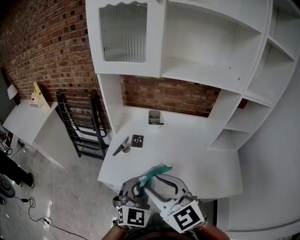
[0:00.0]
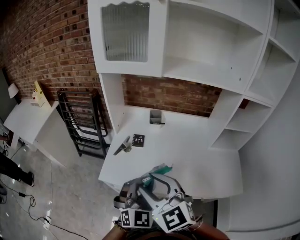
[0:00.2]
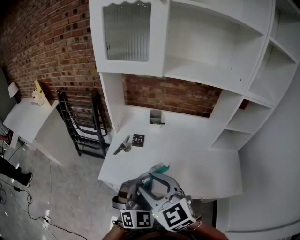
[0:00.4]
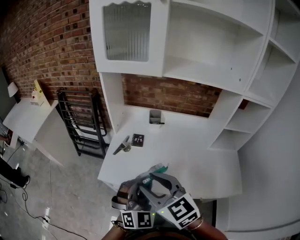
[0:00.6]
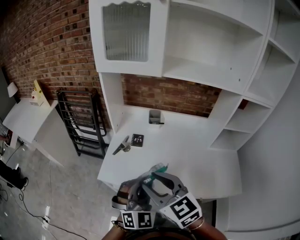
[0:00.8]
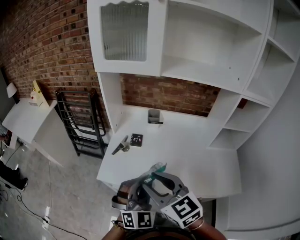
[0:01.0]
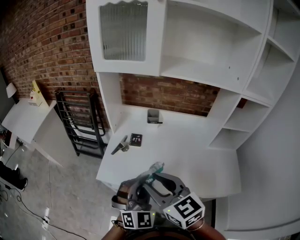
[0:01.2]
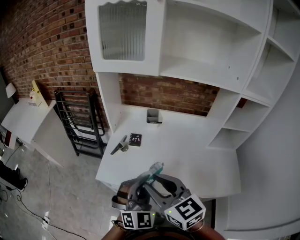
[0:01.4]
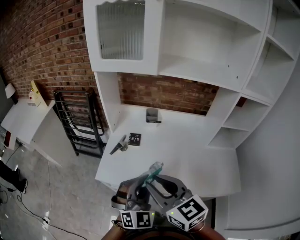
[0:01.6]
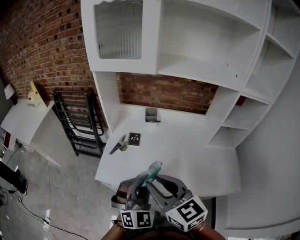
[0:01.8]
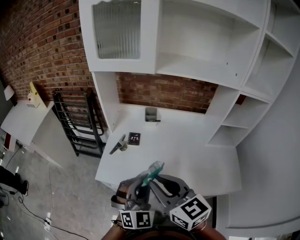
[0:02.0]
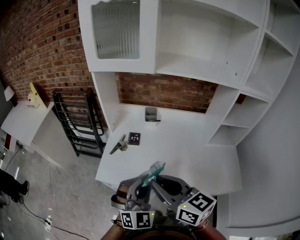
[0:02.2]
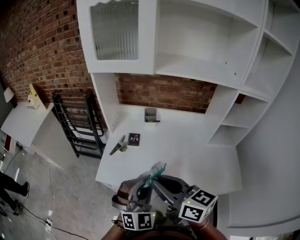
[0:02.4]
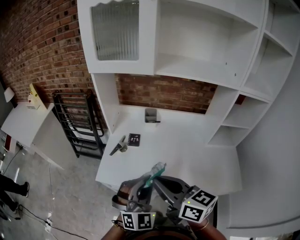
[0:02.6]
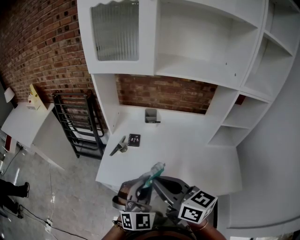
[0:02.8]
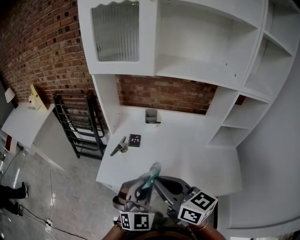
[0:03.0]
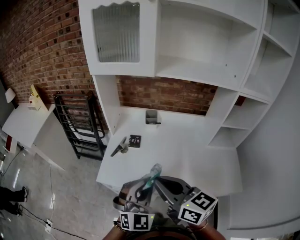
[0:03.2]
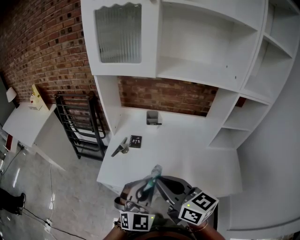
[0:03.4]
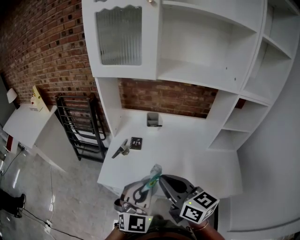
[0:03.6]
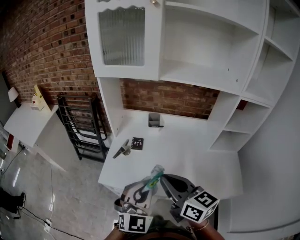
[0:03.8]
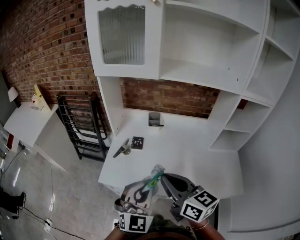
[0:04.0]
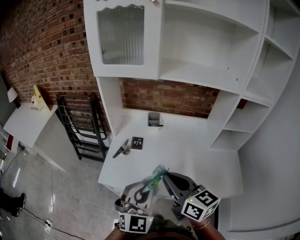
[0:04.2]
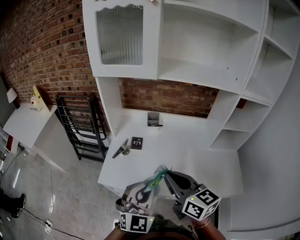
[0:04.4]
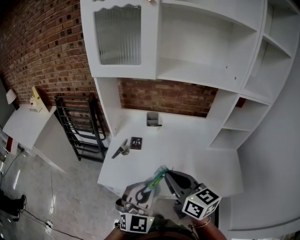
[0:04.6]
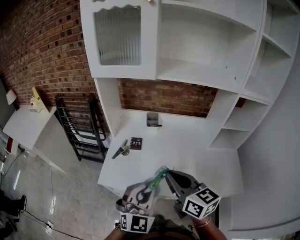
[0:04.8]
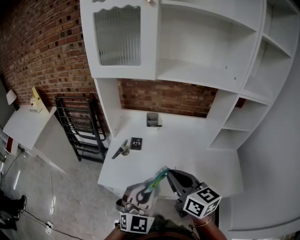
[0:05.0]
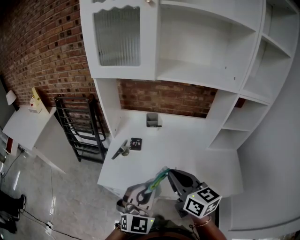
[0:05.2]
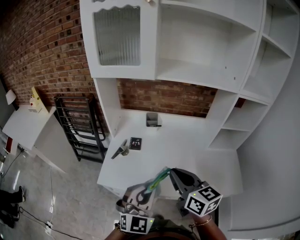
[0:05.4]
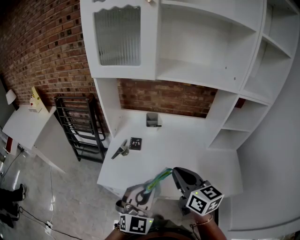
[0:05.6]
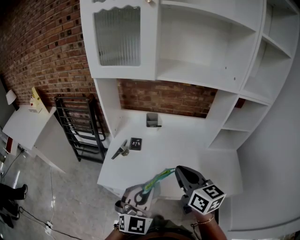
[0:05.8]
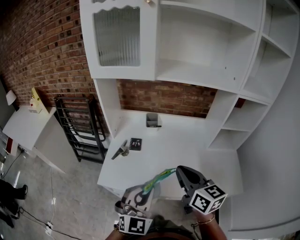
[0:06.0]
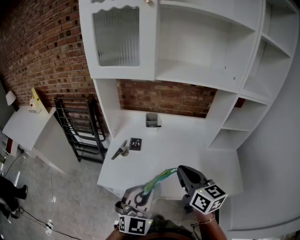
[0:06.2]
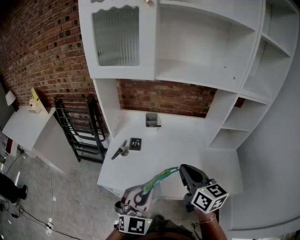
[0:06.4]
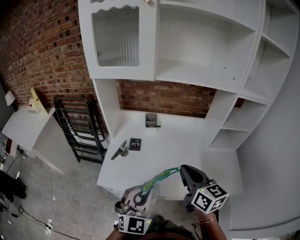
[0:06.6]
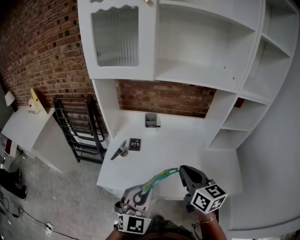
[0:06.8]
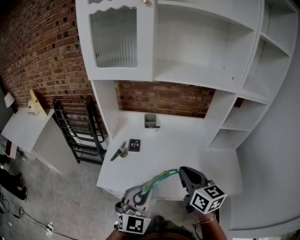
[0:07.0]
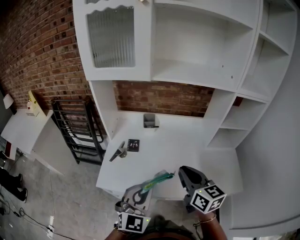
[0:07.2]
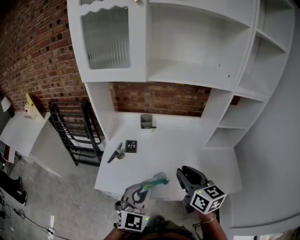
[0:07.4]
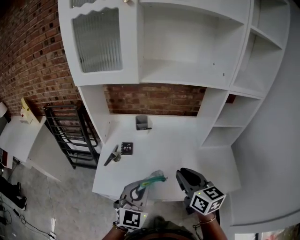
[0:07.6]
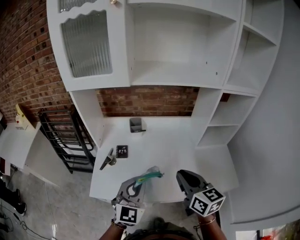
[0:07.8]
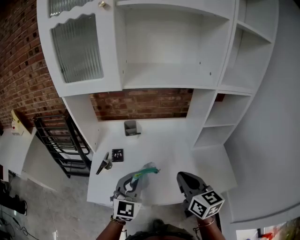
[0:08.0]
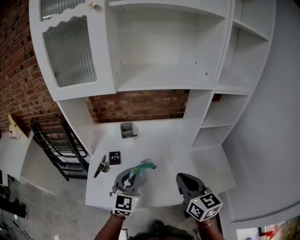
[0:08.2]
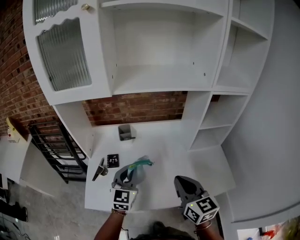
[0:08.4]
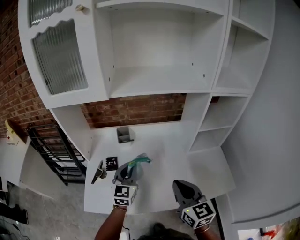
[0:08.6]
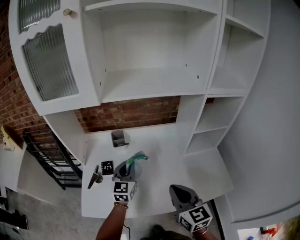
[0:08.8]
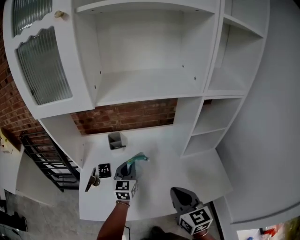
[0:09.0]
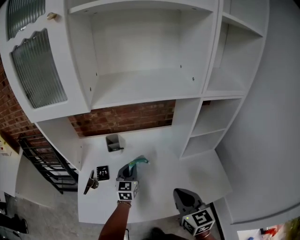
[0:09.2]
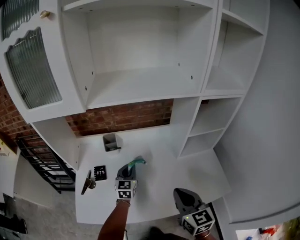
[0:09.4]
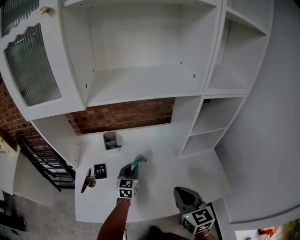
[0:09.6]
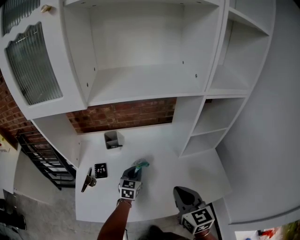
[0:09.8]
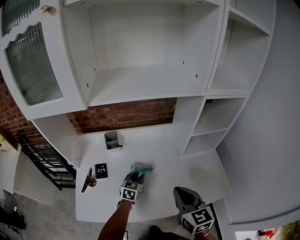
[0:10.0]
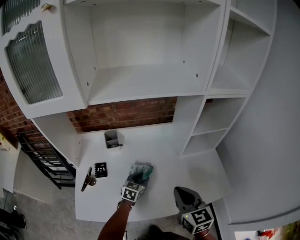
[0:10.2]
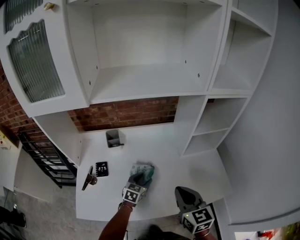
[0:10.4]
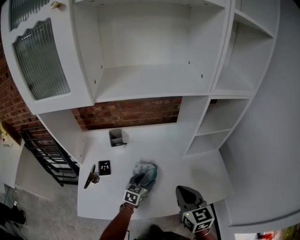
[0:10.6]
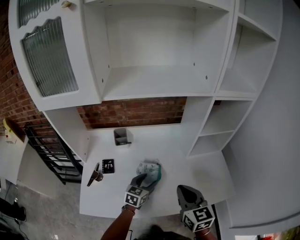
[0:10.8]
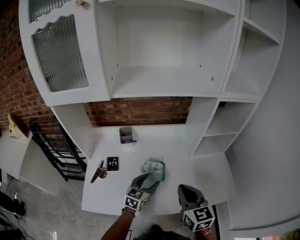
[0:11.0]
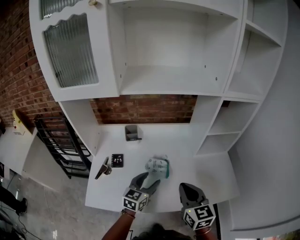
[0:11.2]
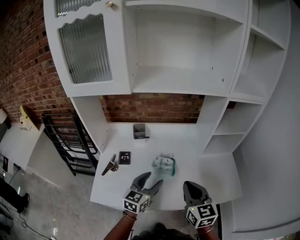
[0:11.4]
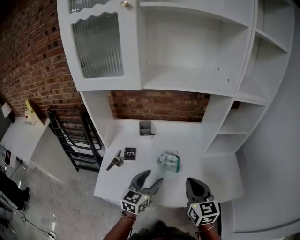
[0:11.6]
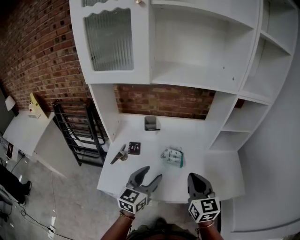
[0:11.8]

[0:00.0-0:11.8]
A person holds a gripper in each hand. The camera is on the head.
0:00.0 to 0:01.4: The right gripper rotates approximately 20 degrees.
0:01.4 to 0:03.0: The right gripper turns by some 20 degrees.
0:03.0 to 0:04.4: The grippers make only small movements.
0:04.4 to 0:06.0: The right gripper is displaced to the right by some 5 cm.
0:06.0 to 0:07.4: The grippers make only small movements.
0:07.4 to 0:08.8: The left gripper goes approximately 25 cm forward. Meanwhile the right gripper travels to the right by some 5 cm.
0:08.8 to 0:10.4: The left gripper shifts about 20 cm downward and to the right, and rotates roughly 30 degrees. Meanwhile the right gripper is displaced to the right by about 5 cm.
0:10.4 to 0:11.8: The right gripper is displaced to the left and backward by approximately 10 cm. The left gripper moves upward, backward and to the left, roughly 30 cm, and rotates approximately 30 degrees.

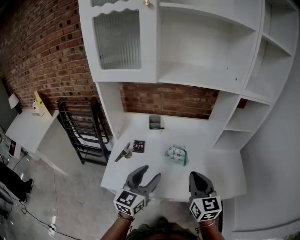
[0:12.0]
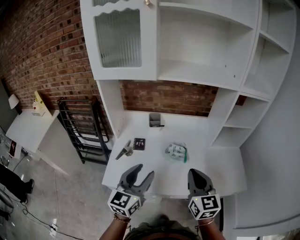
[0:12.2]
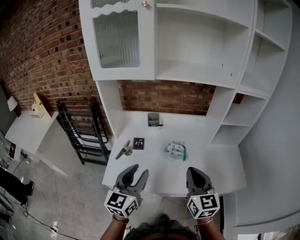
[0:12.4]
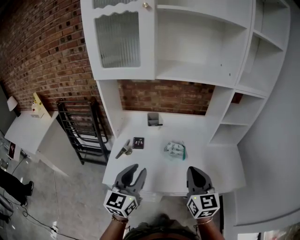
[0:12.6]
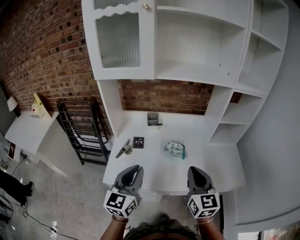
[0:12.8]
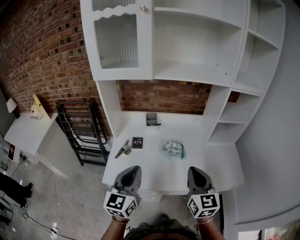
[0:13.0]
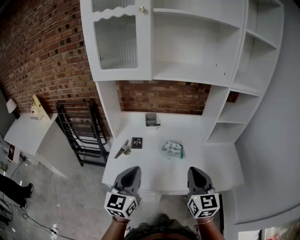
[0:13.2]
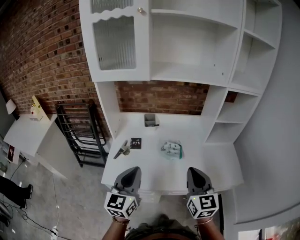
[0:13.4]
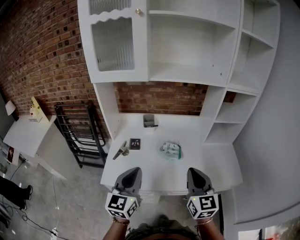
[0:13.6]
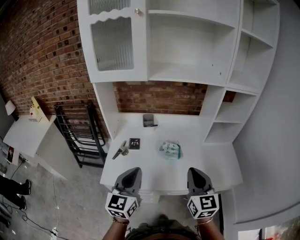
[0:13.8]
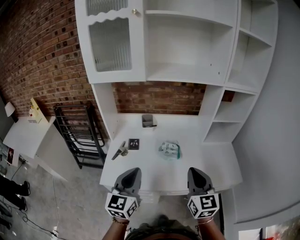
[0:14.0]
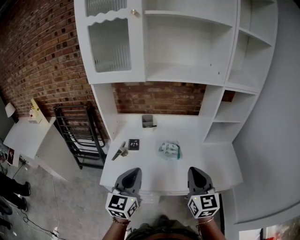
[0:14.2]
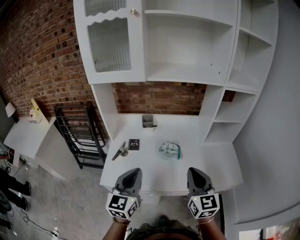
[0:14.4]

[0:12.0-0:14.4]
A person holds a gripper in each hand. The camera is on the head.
0:12.0 to 0:13.2: The left gripper moves backward and to the left, about 10 cm, and closes up. Meanwhile the right gripper changes place by approximately 5 cm.
0:13.2 to 0:14.4: The grippers move only a little.

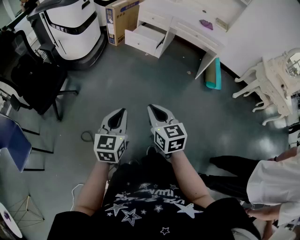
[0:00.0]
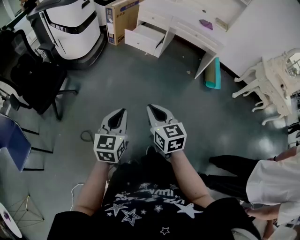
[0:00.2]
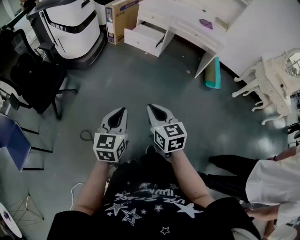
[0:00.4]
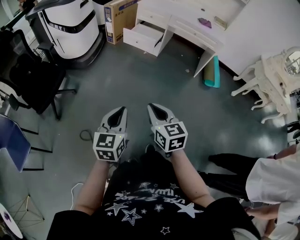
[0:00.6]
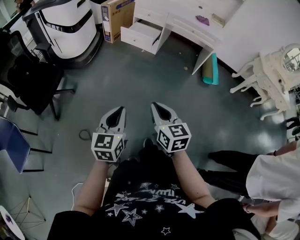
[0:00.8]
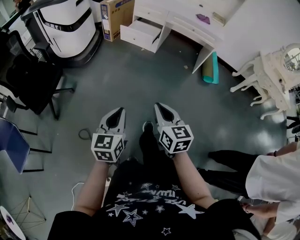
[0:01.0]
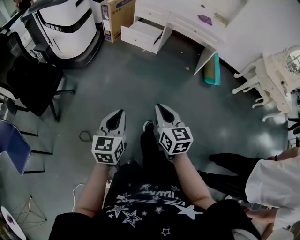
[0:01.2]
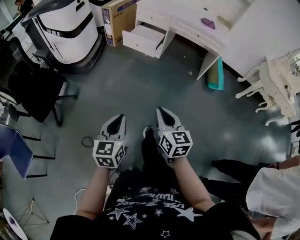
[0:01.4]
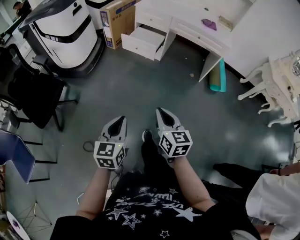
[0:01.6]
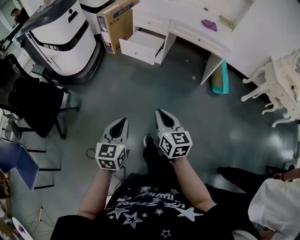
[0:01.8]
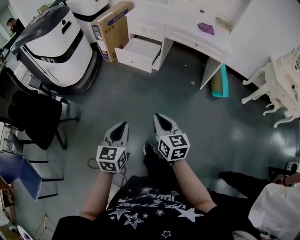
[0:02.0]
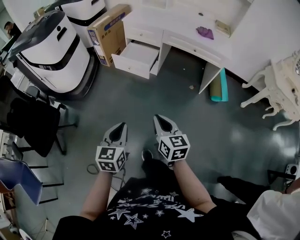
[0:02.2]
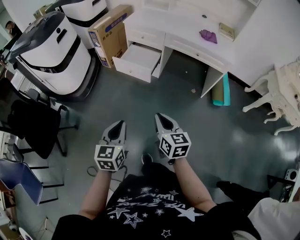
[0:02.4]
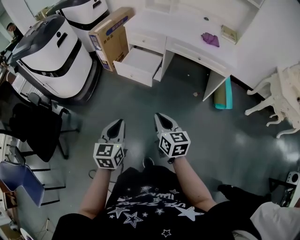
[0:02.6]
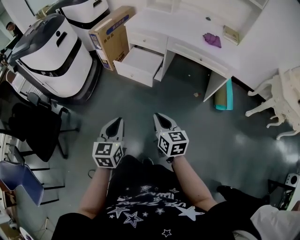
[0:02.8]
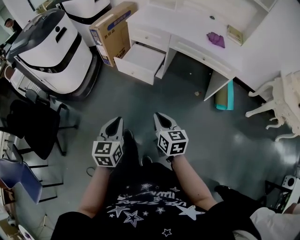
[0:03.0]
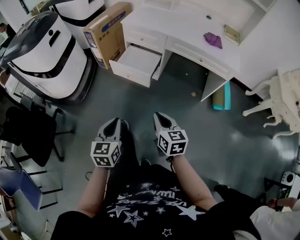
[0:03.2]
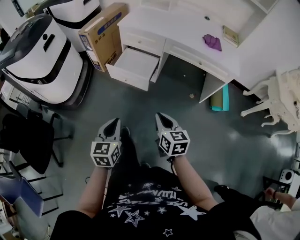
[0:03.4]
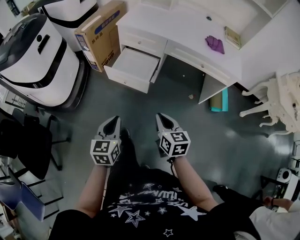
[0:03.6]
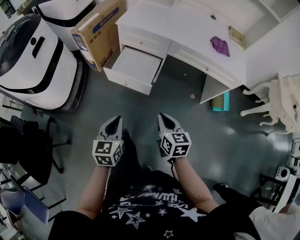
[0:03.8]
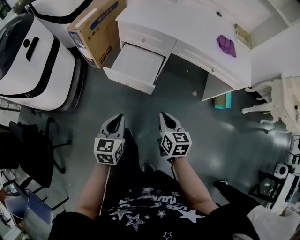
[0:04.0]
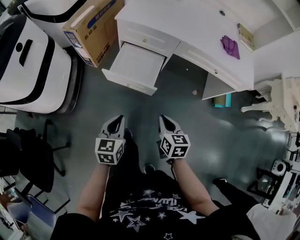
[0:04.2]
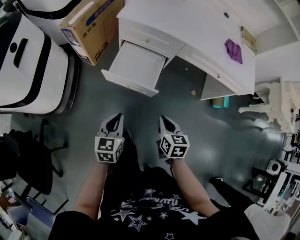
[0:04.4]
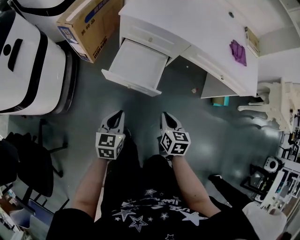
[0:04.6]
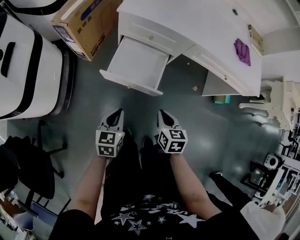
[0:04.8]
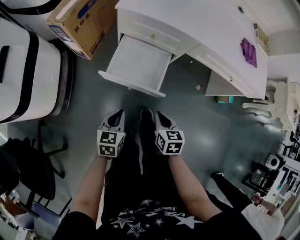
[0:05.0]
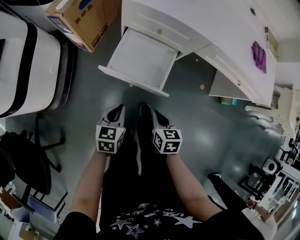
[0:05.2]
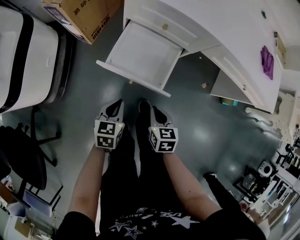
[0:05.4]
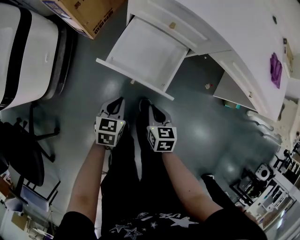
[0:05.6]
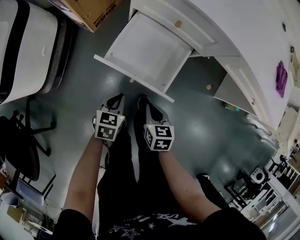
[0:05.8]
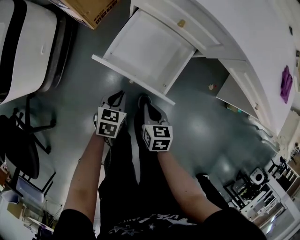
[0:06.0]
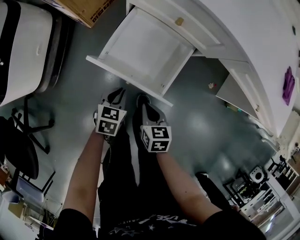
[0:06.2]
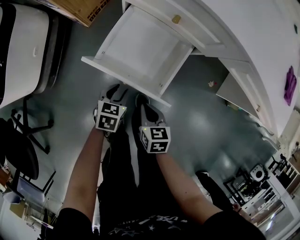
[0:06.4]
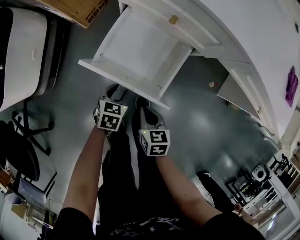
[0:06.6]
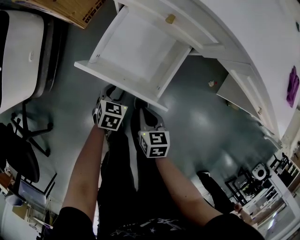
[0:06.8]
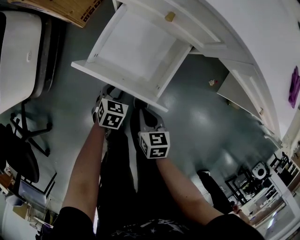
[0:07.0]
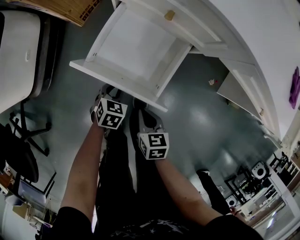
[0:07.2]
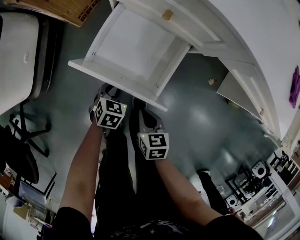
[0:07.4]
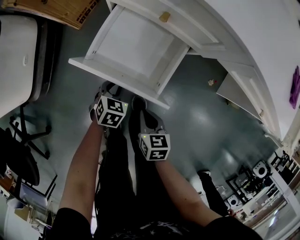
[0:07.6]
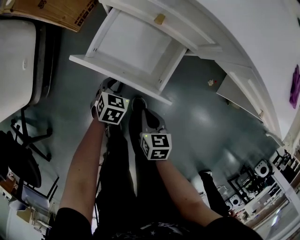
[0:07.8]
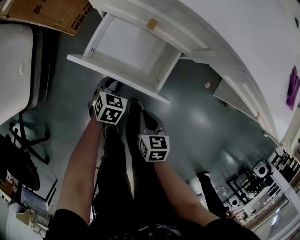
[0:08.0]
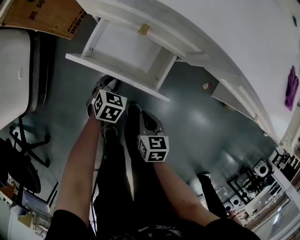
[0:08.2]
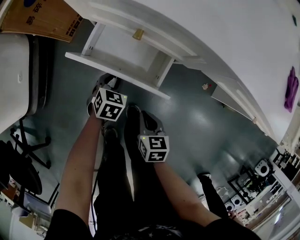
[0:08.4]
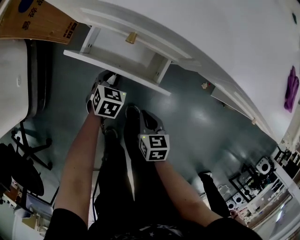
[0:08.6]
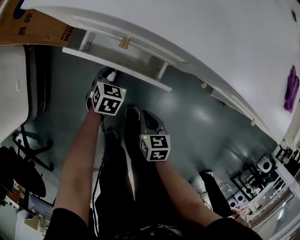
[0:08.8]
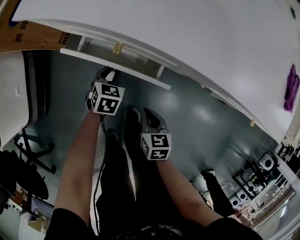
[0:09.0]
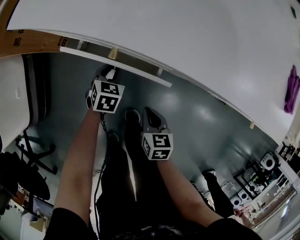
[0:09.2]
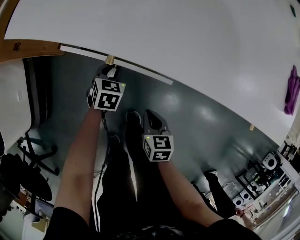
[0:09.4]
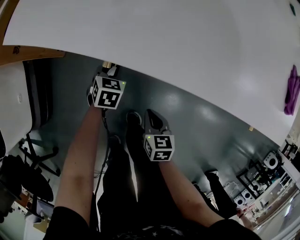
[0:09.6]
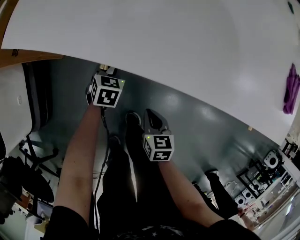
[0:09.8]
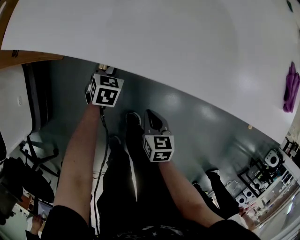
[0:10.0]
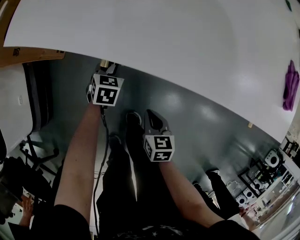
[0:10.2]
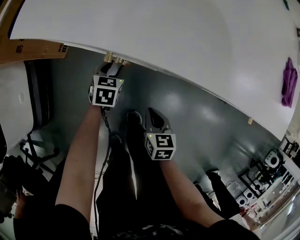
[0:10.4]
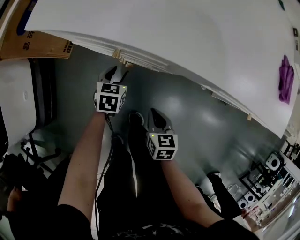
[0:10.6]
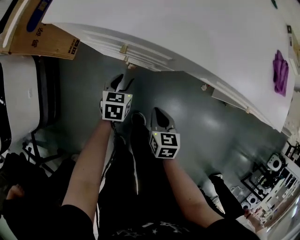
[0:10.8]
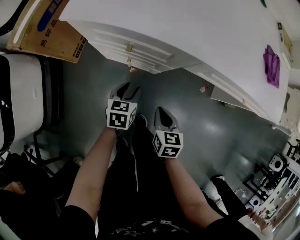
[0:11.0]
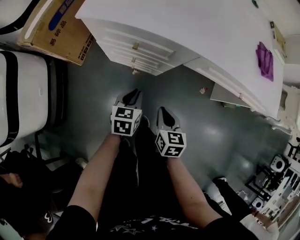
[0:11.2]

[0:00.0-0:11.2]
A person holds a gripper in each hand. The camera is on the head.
0:00.0 to 0:01.6: The left gripper travels forward by roughly 10 cm. The right gripper heads forward and to the right, covering about 15 cm.
0:01.6 to 0:03.2: Both grippers travel together forward, about 30 cm.
0:03.2 to 0:04.8: Both grippers move forward and downward, about 35 cm. The right gripper turns by roughly 20 degrees.
0:04.8 to 0:06.4: The left gripper moves downward and forward, roughly 25 cm, swivels about 20 degrees, and opens its fingers. Meanwhile the right gripper heads downward, covering roughly 20 cm.
0:06.4 to 0:08.0: The left gripper heads forward, covering some 10 cm. The right gripper is displaced to the right by roughly 5 cm.
0:08.0 to 0:09.6: Both grippers travel together forward and to the right, roughly 15 cm.
0:09.6 to 0:11.2: The right gripper moves upward, about 10 cm, while the left gripper is displaced backward and upward by roughly 20 cm, turns by about 20 degrees, and opens, then closes once more.
